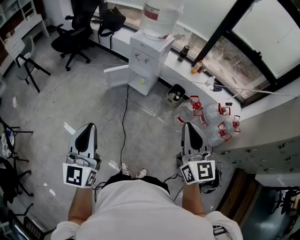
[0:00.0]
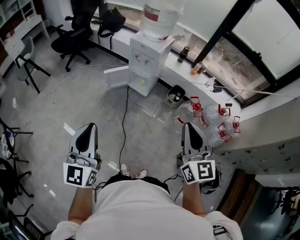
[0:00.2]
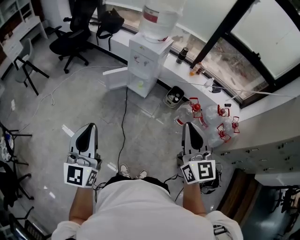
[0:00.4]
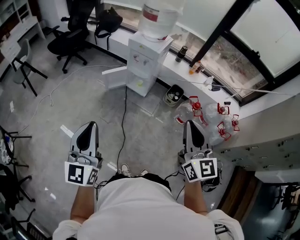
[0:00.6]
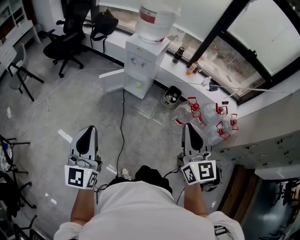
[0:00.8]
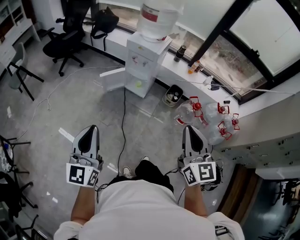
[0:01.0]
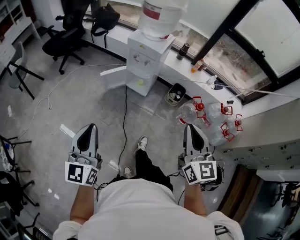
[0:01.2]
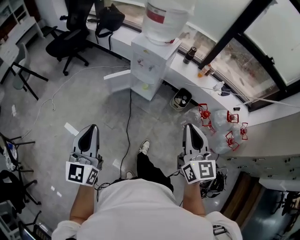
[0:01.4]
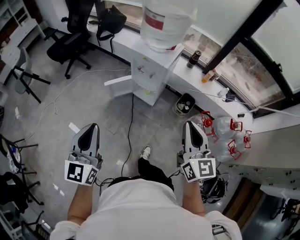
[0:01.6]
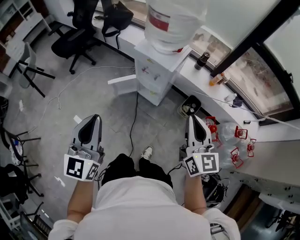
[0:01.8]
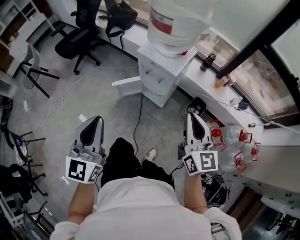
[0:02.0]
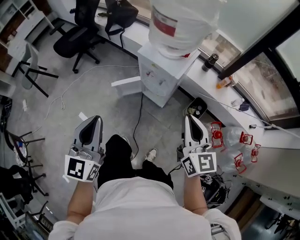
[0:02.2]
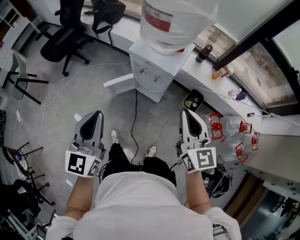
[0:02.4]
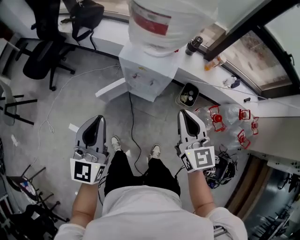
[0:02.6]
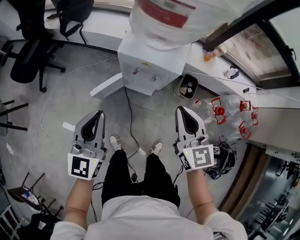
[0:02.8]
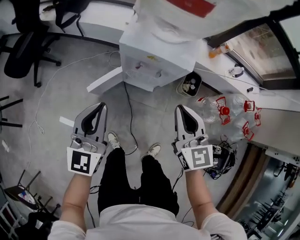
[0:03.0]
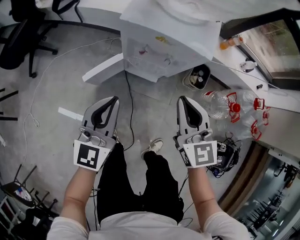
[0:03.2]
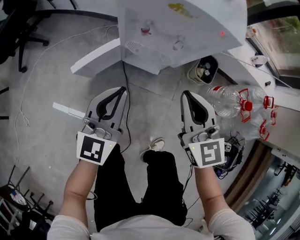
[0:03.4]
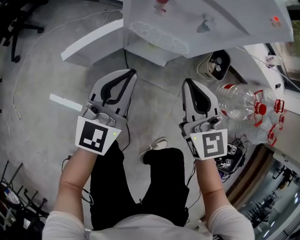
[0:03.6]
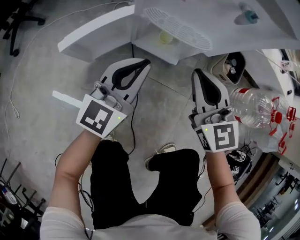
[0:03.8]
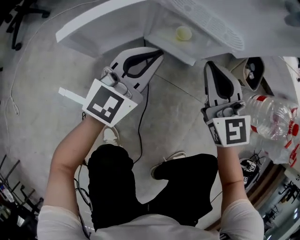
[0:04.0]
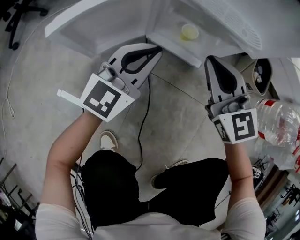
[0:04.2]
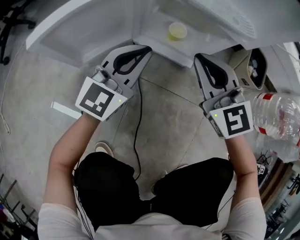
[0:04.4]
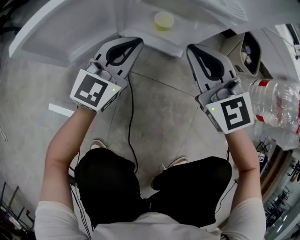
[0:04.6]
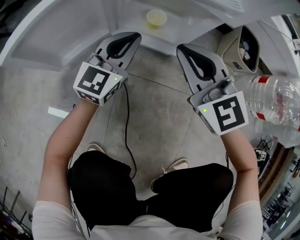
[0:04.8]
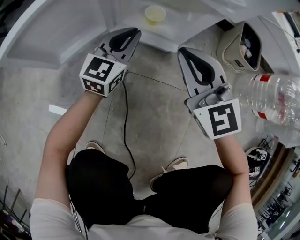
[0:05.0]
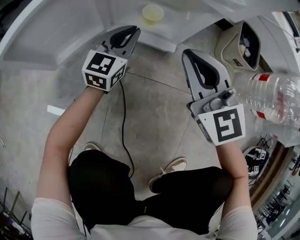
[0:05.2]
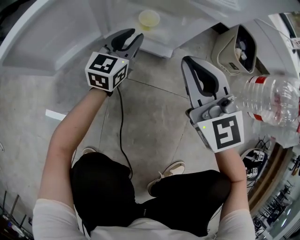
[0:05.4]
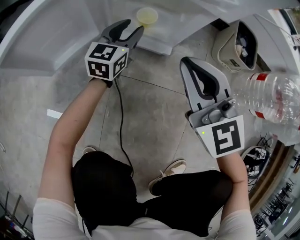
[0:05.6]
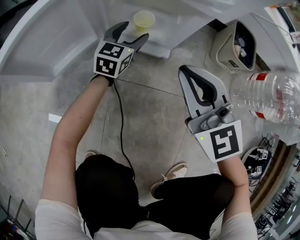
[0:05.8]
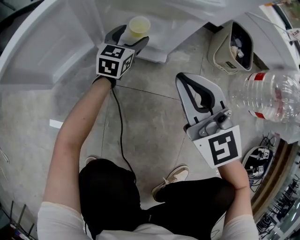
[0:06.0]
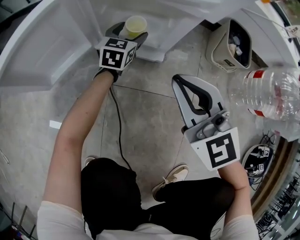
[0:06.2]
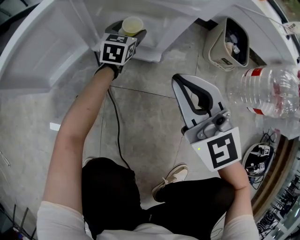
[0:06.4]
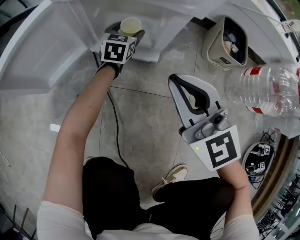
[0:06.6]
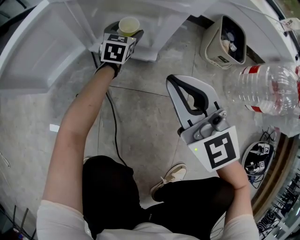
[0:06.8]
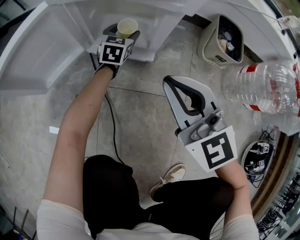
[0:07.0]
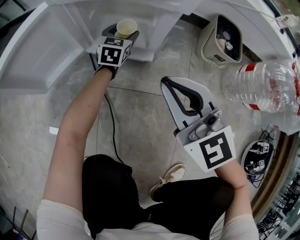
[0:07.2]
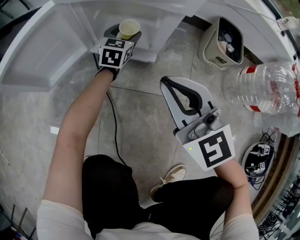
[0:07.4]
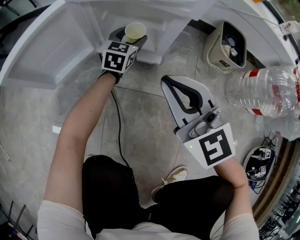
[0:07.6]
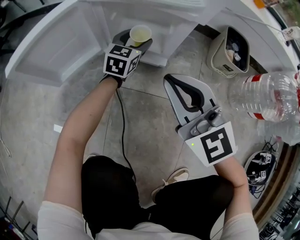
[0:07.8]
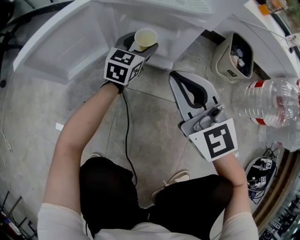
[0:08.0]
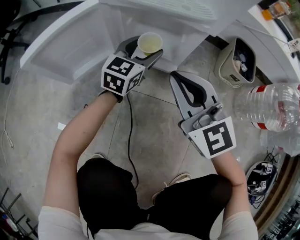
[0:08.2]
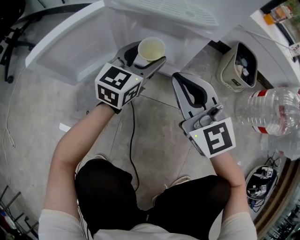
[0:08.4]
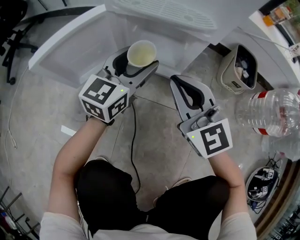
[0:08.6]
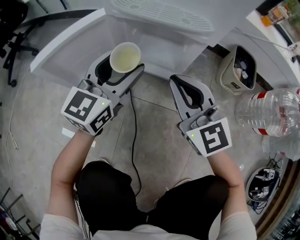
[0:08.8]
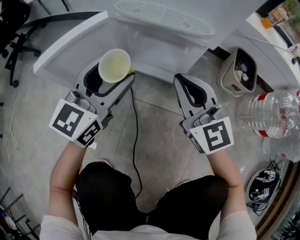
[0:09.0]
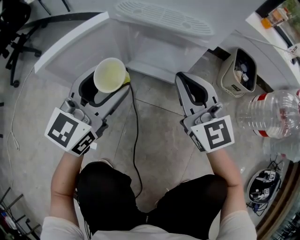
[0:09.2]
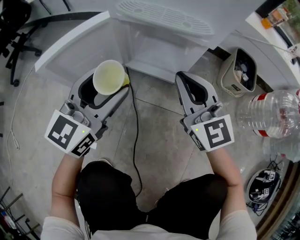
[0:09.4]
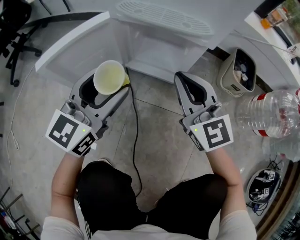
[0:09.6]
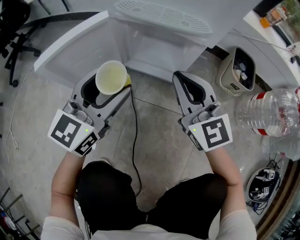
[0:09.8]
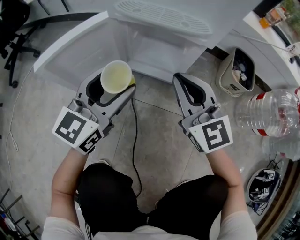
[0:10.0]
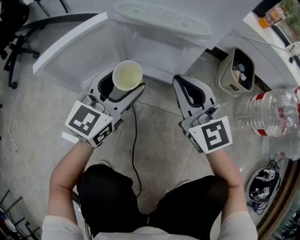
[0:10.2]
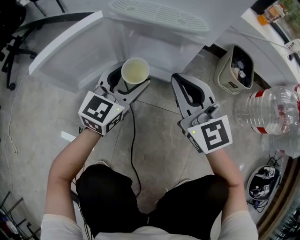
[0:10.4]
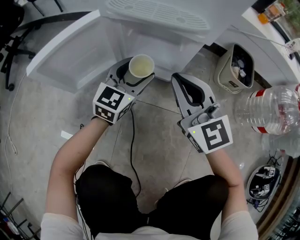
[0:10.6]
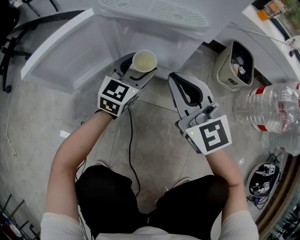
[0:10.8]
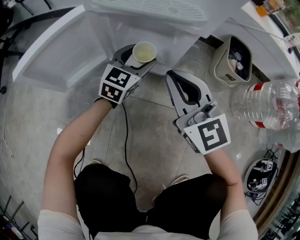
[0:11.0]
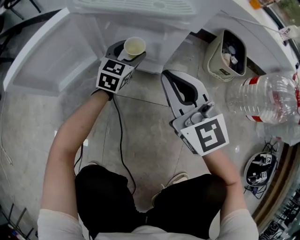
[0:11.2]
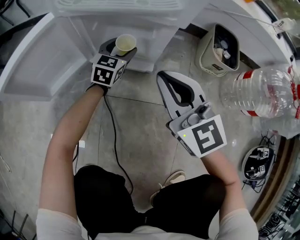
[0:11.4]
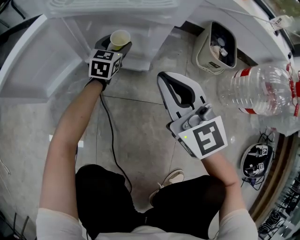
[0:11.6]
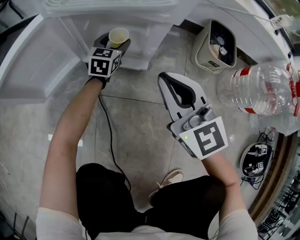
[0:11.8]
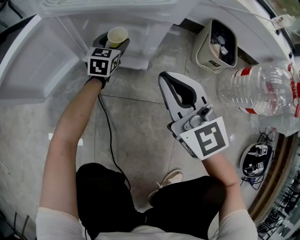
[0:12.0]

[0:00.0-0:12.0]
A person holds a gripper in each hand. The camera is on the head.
0:00.0 to 0:01.6: The two grippers go some 25 cm forward.
0:01.6 to 0:03.0: The left gripper shifts approximately 40 cm forward and downward, and swivels roughly 20 degrees; the right gripper moves forward, downward and to the left, approximately 35 cm.
0:03.0 to 0:04.4: Both grippers travel together downward, about 50 cm. The right gripper turns by roughly 30 degrees.
0:04.4 to 0:06.0: The right gripper travels to the right by roughly 5 cm, while the left gripper heads downward, forward and to the right, covering roughly 25 cm, and opens.
0:06.0 to 0:07.6: The grippers stay close to where they were, moving slightly.
0:07.6 to 0:09.0: The right gripper ends up approximately 5 cm from where it was, while the left gripper is displaced upward, backward and to the left by about 30 cm.
0:09.0 to 0:10.4: The left gripper moves downward and to the right, about 10 cm.
0:10.4 to 0:12.0: The right gripper travels to the right by some 5 cm. The left gripper is displaced forward and downward by roughly 25 cm.

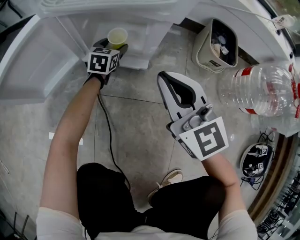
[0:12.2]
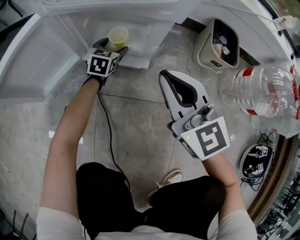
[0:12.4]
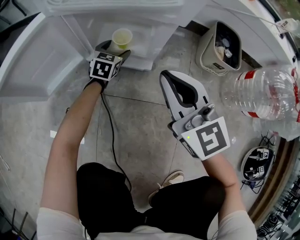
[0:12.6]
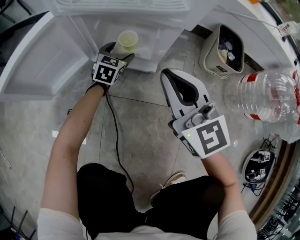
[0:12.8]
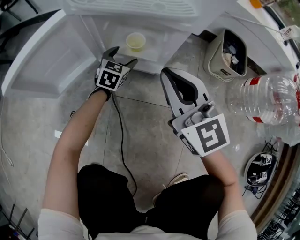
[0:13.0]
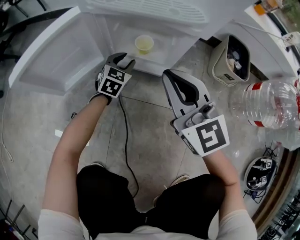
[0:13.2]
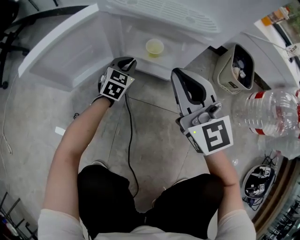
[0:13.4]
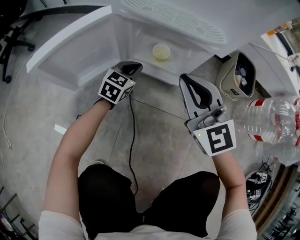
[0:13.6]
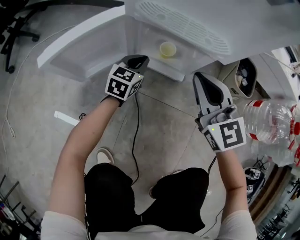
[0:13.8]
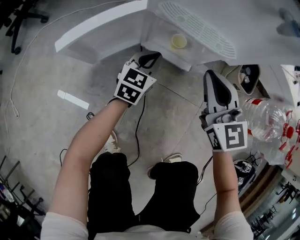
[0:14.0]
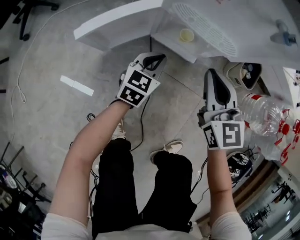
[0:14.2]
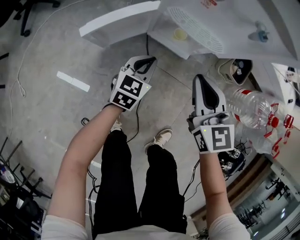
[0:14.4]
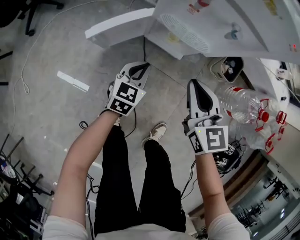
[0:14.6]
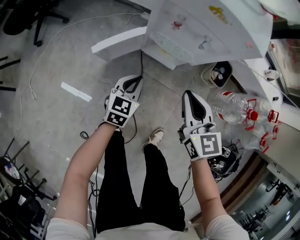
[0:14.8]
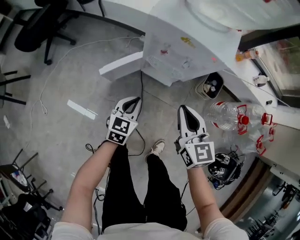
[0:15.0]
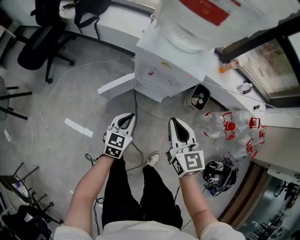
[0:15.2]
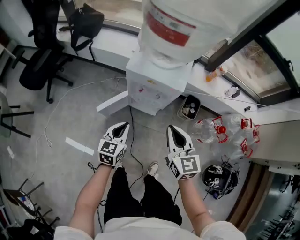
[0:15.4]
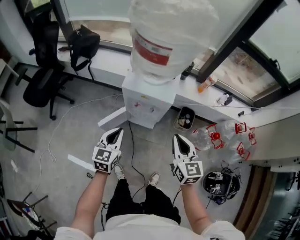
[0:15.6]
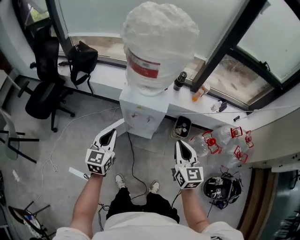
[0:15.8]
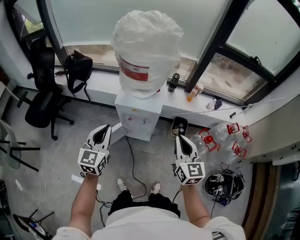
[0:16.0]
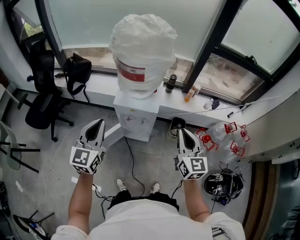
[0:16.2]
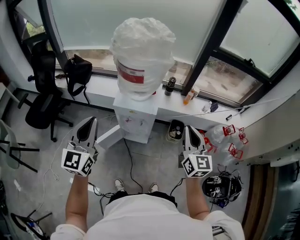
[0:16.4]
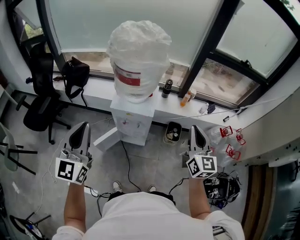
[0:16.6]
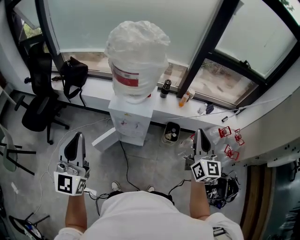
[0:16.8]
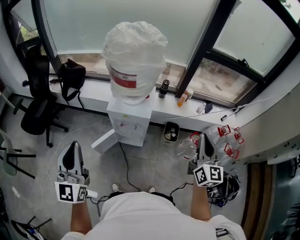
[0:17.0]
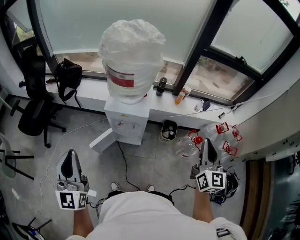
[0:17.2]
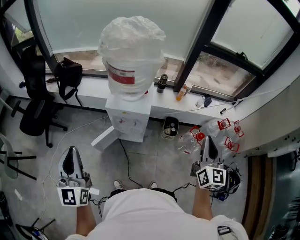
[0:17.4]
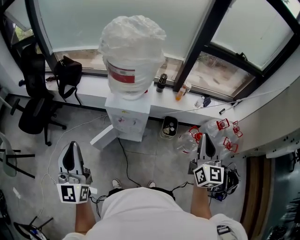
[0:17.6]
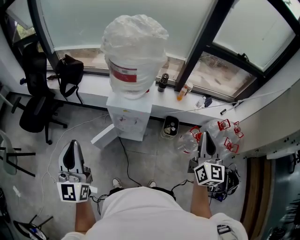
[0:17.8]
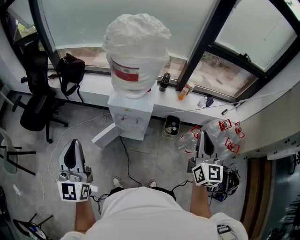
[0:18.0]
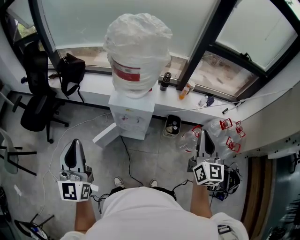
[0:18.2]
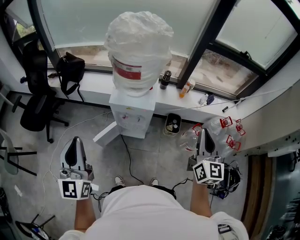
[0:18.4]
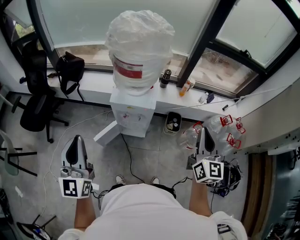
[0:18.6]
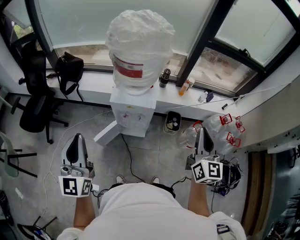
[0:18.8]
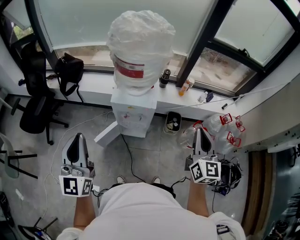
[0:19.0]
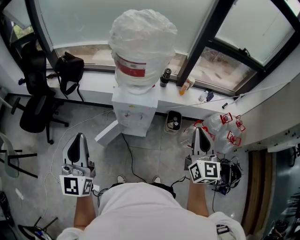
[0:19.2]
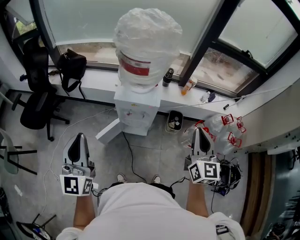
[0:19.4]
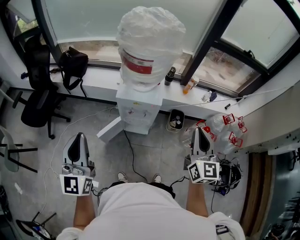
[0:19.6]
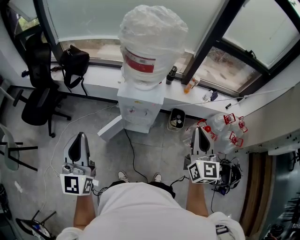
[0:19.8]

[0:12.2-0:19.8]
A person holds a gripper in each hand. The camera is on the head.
0:12.2 to 0:13.8: The right gripper heads upward and to the left, covering approximately 10 cm. Meanwhile the left gripper travels upward, backward and to the left by about 20 cm, and closes its fingers.
0:13.8 to 0:15.2: Both grippers move upward, roughly 50 cm. The right gripper rotates approximately 20 degrees.
0:15.2 to 0:16.8: The left gripper moves upward, about 50 cm, and angles its fingers upward, by approximately 40 degrees, while the right gripper heads upward and to the right, covering some 40 cm, and changes its angle by approximately 40 degrees.
0:16.8 to 0:18.2: The grippers make only small movements.
0:18.2 to 0:19.8: The right gripper moves to the left, approximately 10 cm.

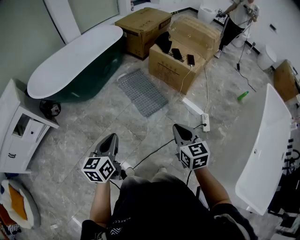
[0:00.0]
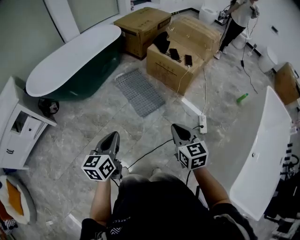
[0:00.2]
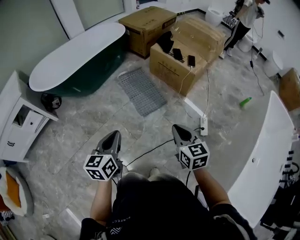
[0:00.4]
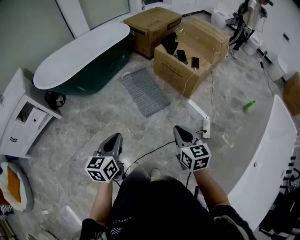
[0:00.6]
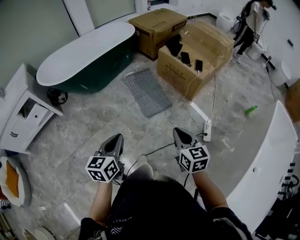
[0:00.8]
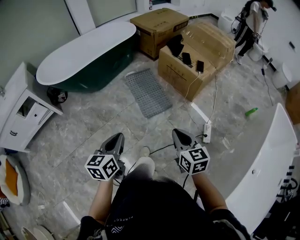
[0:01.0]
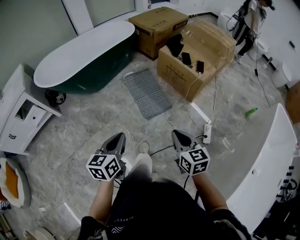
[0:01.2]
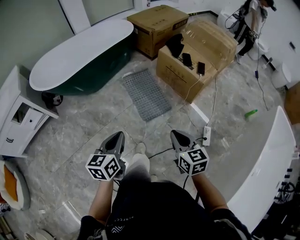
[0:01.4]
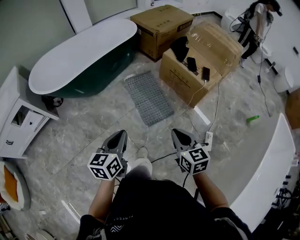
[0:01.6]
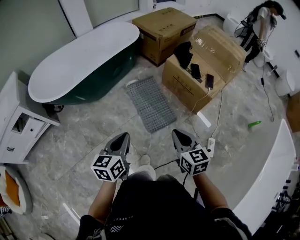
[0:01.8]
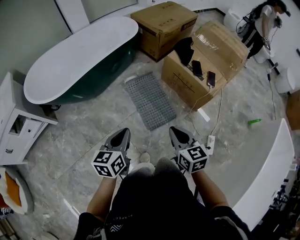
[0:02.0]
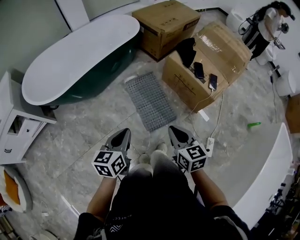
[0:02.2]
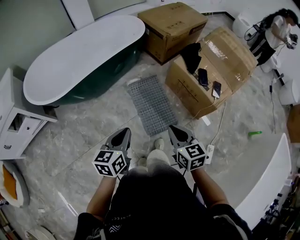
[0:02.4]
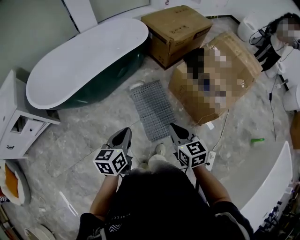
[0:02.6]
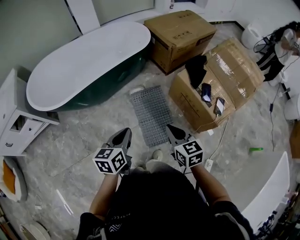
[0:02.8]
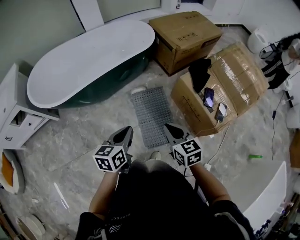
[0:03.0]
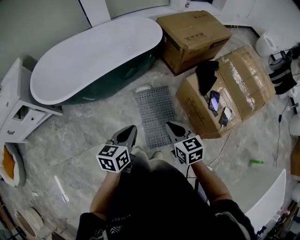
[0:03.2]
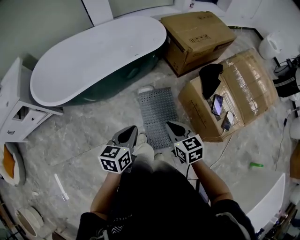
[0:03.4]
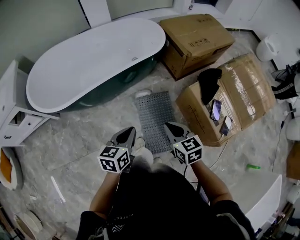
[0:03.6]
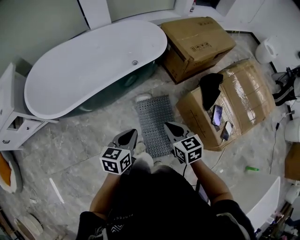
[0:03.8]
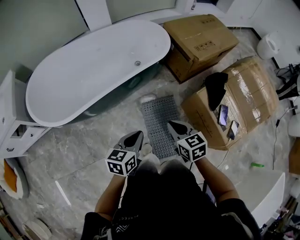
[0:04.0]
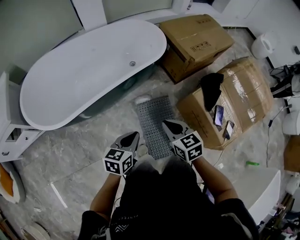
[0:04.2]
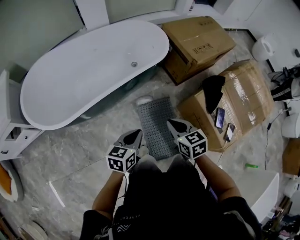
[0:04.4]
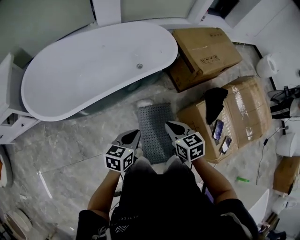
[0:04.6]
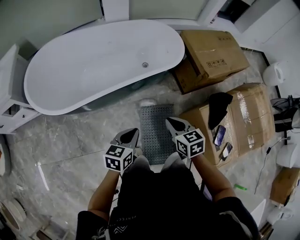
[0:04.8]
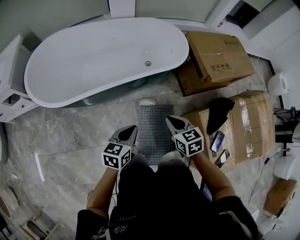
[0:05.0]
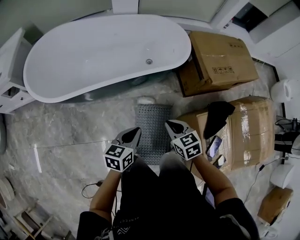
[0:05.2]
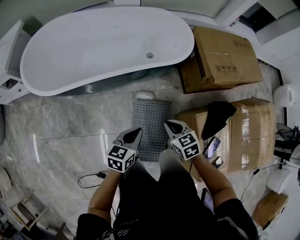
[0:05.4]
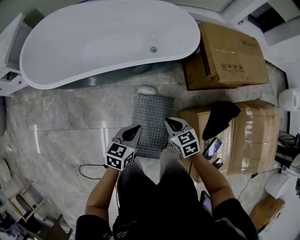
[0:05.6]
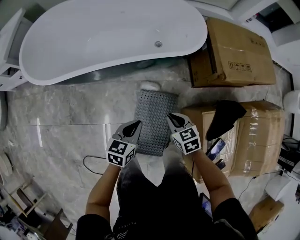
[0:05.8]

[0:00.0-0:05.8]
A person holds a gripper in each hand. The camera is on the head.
0:00.0 to 0:01.4: The right gripper is displaced forward and to the right by approximately 10 cm, while the left gripper moves to the right and forward, about 10 cm.
0:01.4 to 0:02.8: The grippers both shift forward by roughly 35 cm.
0:02.8 to 0:04.4: Both grippers move forward, some 20 cm.
0:04.4 to 0:05.8: The right gripper goes some 20 cm downward, to the right and forward, and changes its angle by about 30 degrees; the left gripper goes approximately 15 cm downward and to the right, and rotates some 20 degrees.
